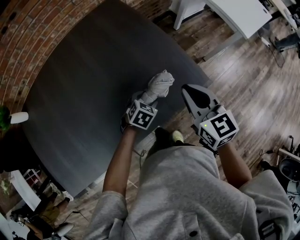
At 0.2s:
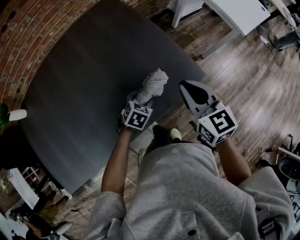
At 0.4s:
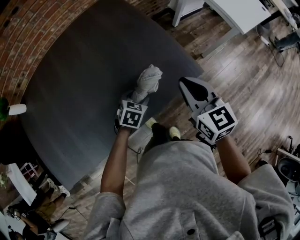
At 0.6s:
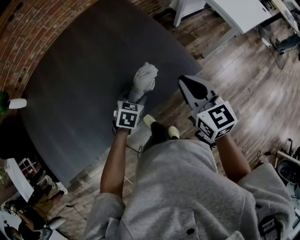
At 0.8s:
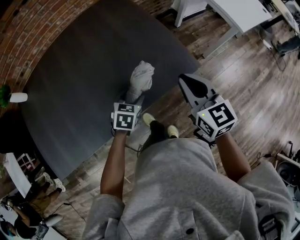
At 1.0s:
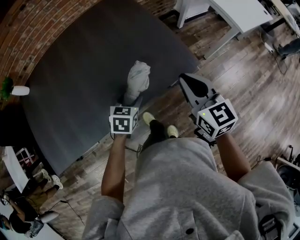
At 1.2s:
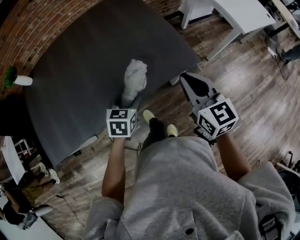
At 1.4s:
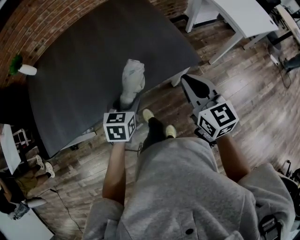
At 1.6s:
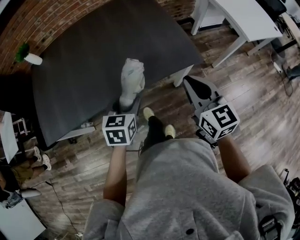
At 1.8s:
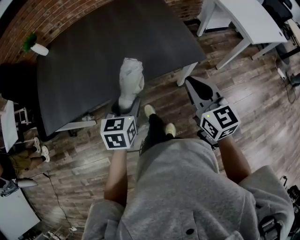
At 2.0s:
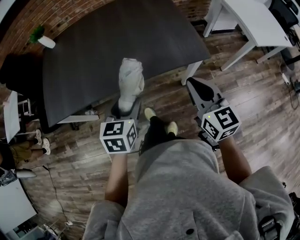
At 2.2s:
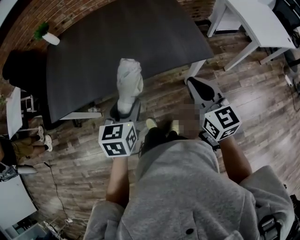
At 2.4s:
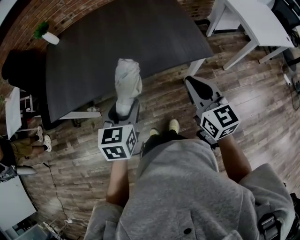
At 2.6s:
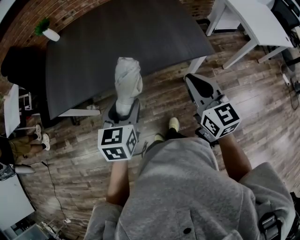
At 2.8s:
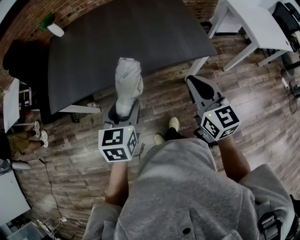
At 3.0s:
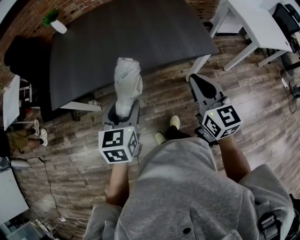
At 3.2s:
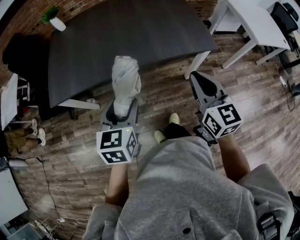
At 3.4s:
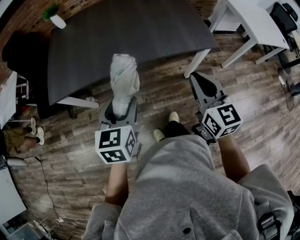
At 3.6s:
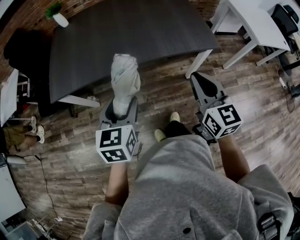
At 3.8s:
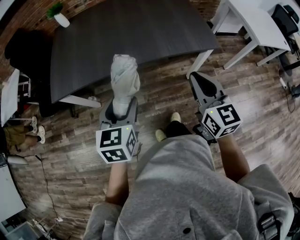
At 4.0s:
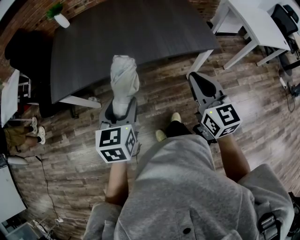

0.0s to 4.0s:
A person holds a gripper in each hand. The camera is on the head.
0.0s to 1.4s: The right gripper is displaced backward by some 15 cm. The left gripper heads backward and upward, covering approximately 25 cm, and changes its angle by approximately 40 degrees.
1.4s to 2.6s: The right gripper moves backward and to the left, some 10 cm, while the left gripper travels backward, upward and to the left by roughly 20 cm.
2.6s to 4.0s: Both grippers travel together to the left and backward, some 15 cm.

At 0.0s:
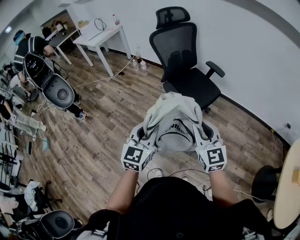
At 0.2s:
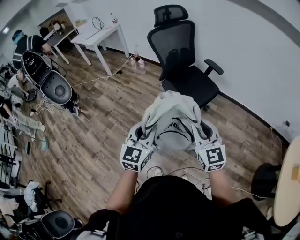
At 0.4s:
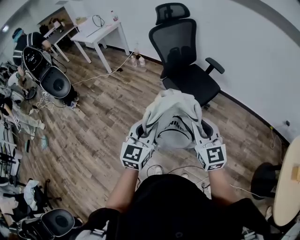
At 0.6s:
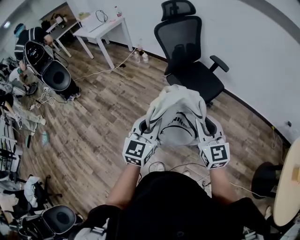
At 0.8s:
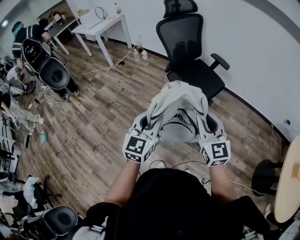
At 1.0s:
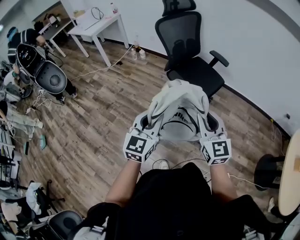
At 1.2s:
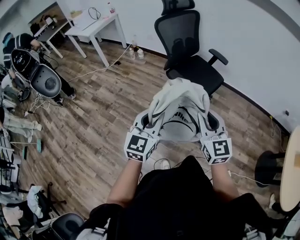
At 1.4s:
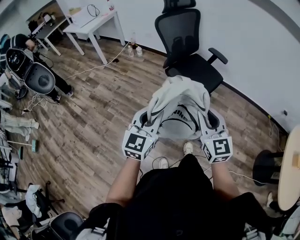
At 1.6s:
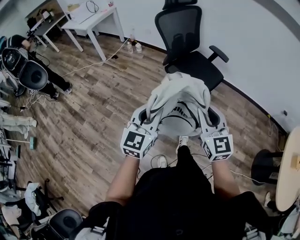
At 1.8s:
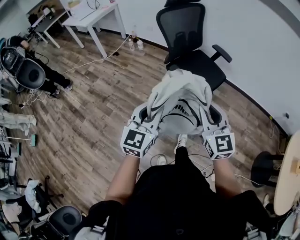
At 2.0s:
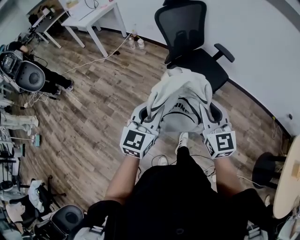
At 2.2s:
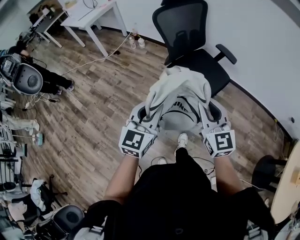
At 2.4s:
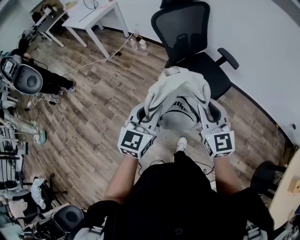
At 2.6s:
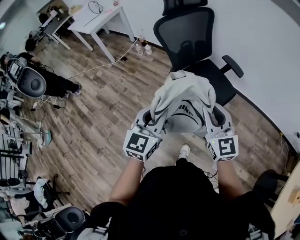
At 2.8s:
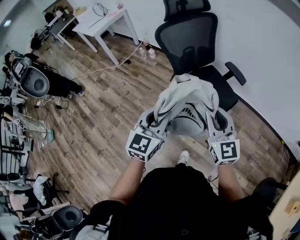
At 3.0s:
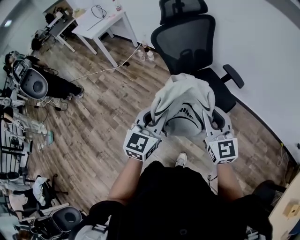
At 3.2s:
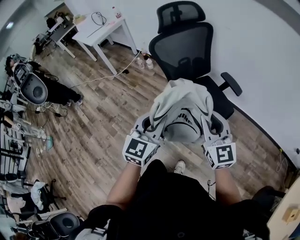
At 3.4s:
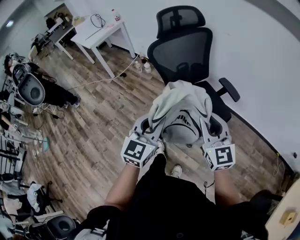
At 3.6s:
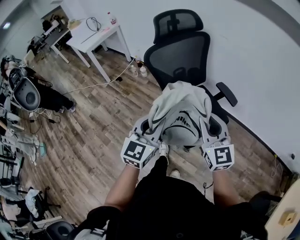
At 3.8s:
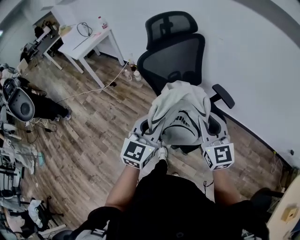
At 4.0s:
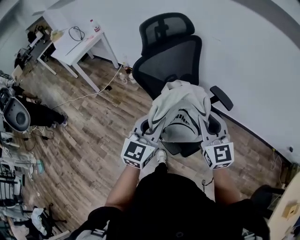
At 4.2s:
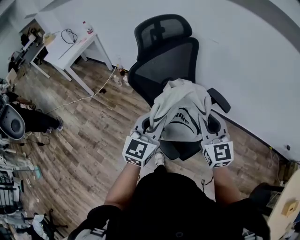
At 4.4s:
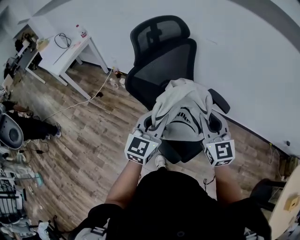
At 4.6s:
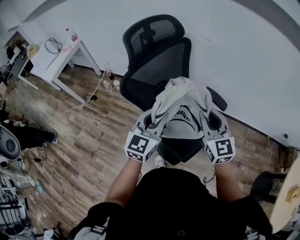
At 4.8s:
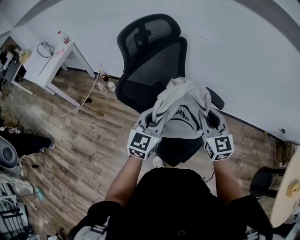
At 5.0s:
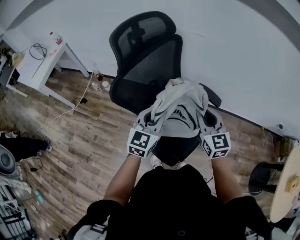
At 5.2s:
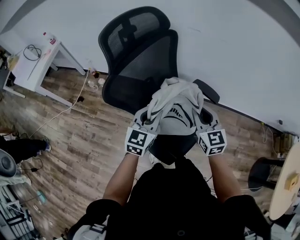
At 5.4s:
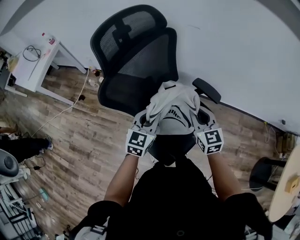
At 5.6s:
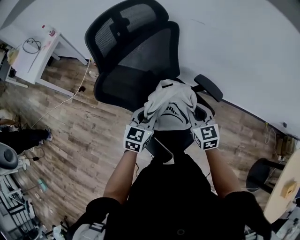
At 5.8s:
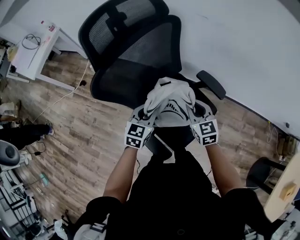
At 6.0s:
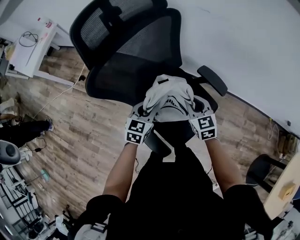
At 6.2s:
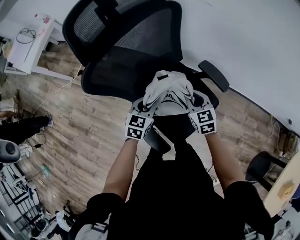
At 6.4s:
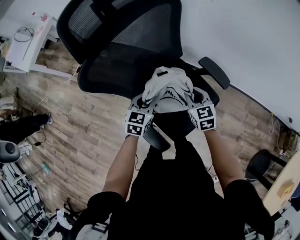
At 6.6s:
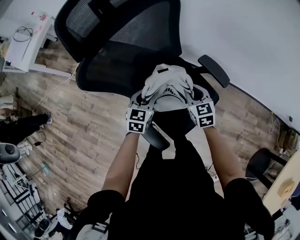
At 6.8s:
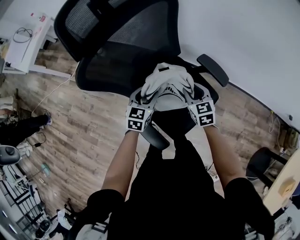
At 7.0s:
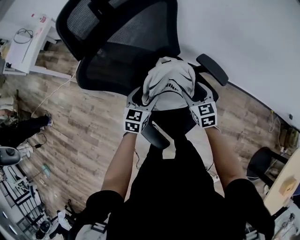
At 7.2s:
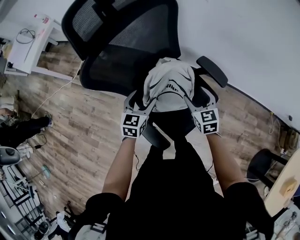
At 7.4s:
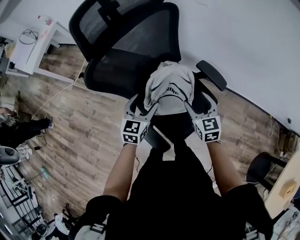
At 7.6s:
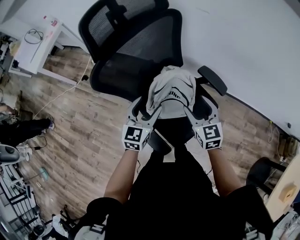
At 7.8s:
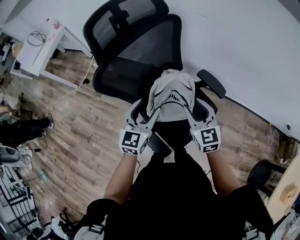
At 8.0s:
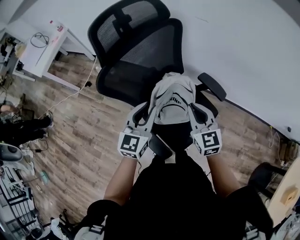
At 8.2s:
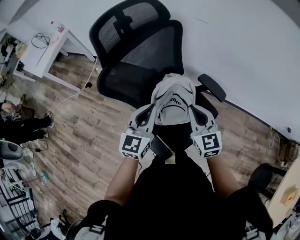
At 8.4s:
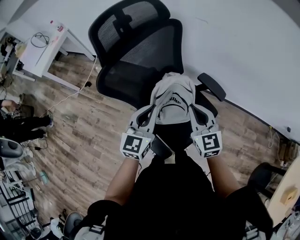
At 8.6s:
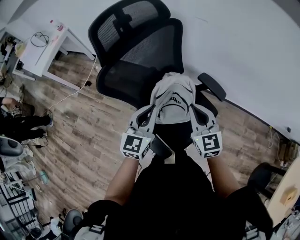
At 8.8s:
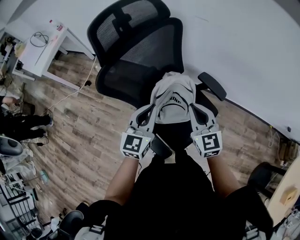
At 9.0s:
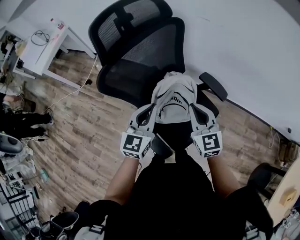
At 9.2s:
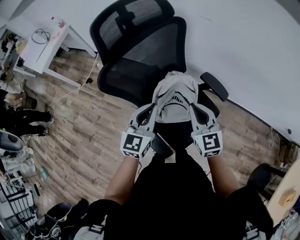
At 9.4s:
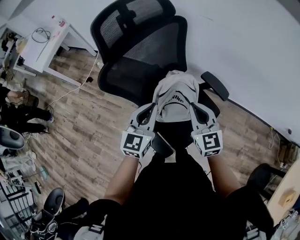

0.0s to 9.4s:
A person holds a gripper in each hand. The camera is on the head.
0.0s to 1.6s: The grippers both shift to the left by about 10 cm.
1.6s to 3.2s: The left gripper shifts some 30 cm forward and to the right. Meanwhile the right gripper goes about 30 cm forward.
3.2s to 4.8s: The two grippers go approximately 30 cm forward. The right gripper rotates roughly 20 degrees. The left gripper rotates about 20 degrees.
4.8s to 6.2s: The right gripper heads downward and forward, covering some 25 cm, and turns by about 30 degrees. The left gripper goes some 20 cm downward, and turns by some 30 degrees.
6.2s to 7.8s: The left gripper travels upward by roughly 15 cm, and opens its fingers. The right gripper goes approximately 15 cm upward and backward, and opens up.
7.8s to 9.4s: The right gripper closes its fingers; the left gripper closes.

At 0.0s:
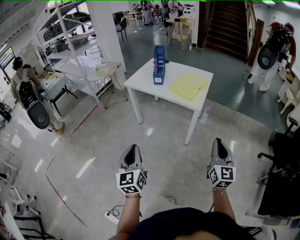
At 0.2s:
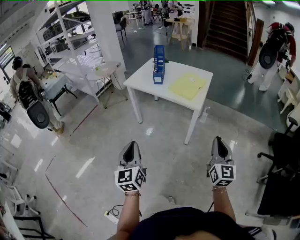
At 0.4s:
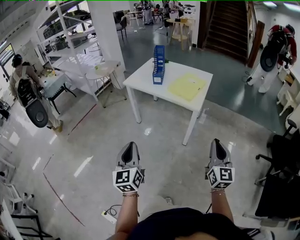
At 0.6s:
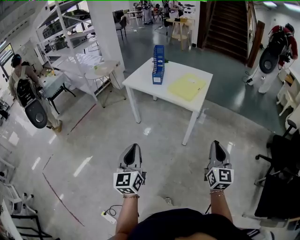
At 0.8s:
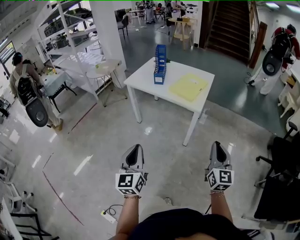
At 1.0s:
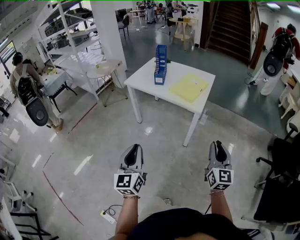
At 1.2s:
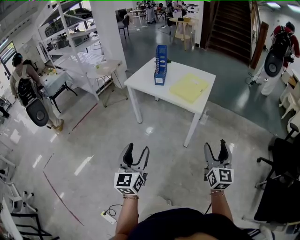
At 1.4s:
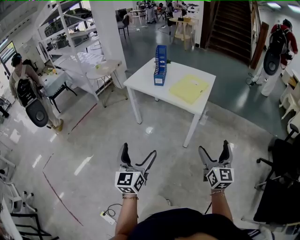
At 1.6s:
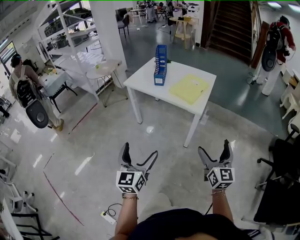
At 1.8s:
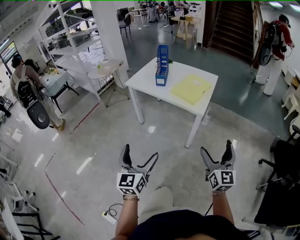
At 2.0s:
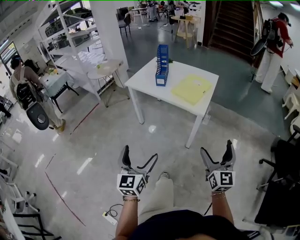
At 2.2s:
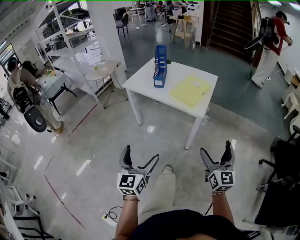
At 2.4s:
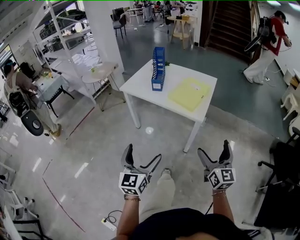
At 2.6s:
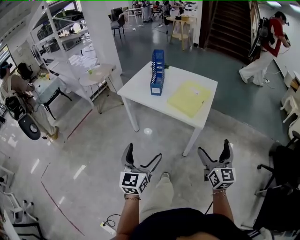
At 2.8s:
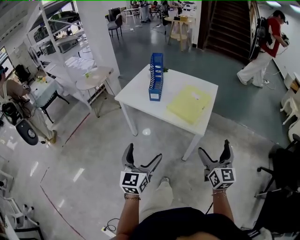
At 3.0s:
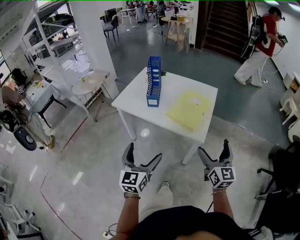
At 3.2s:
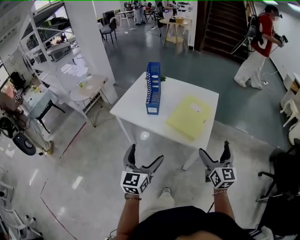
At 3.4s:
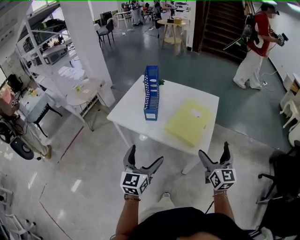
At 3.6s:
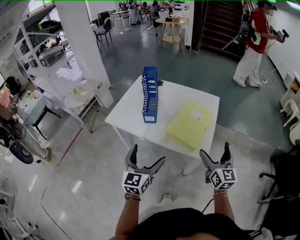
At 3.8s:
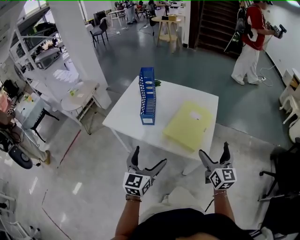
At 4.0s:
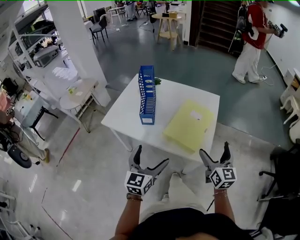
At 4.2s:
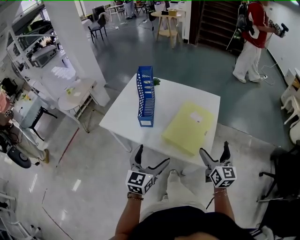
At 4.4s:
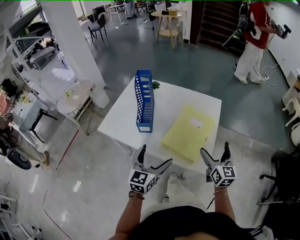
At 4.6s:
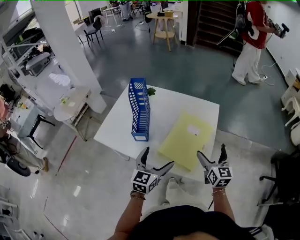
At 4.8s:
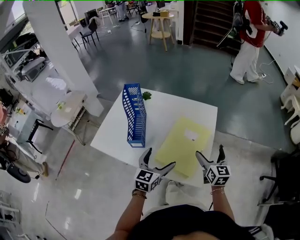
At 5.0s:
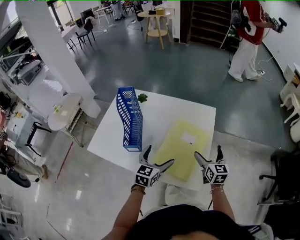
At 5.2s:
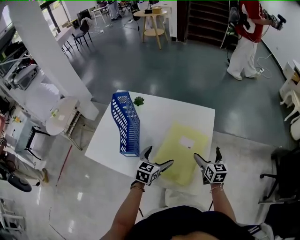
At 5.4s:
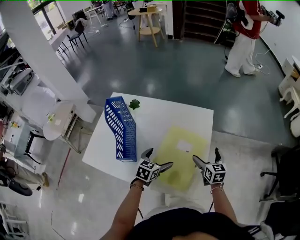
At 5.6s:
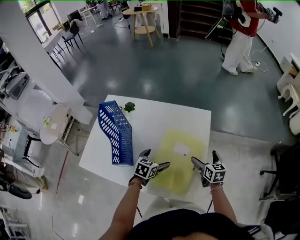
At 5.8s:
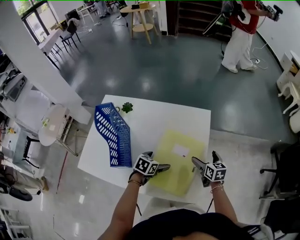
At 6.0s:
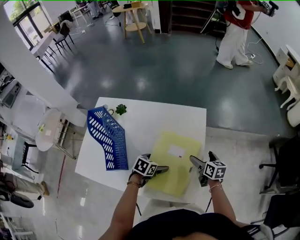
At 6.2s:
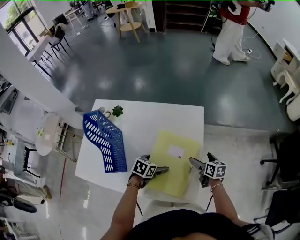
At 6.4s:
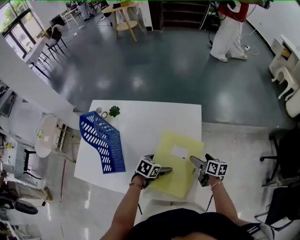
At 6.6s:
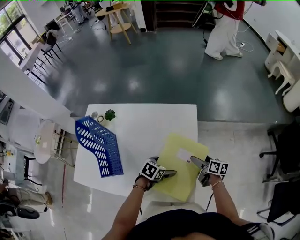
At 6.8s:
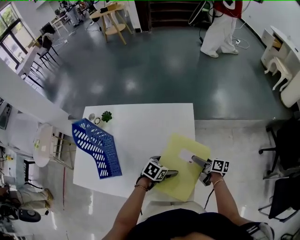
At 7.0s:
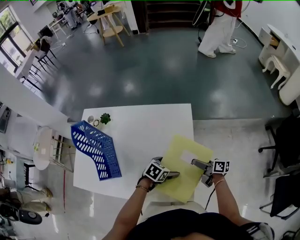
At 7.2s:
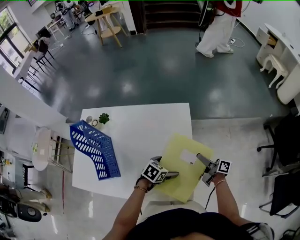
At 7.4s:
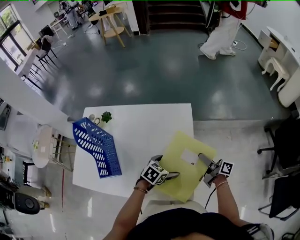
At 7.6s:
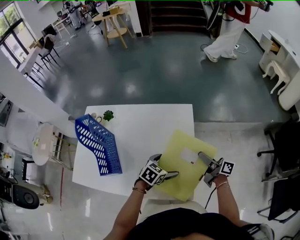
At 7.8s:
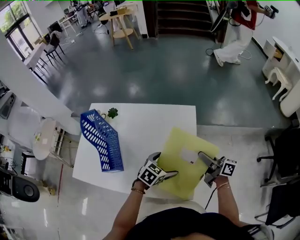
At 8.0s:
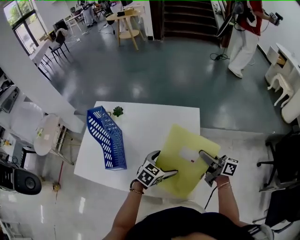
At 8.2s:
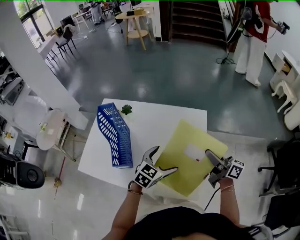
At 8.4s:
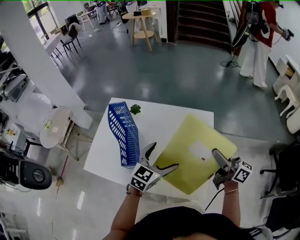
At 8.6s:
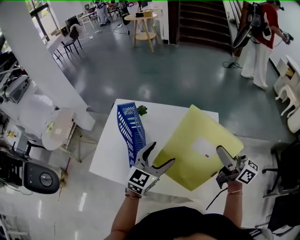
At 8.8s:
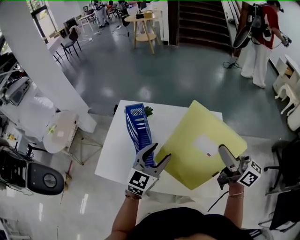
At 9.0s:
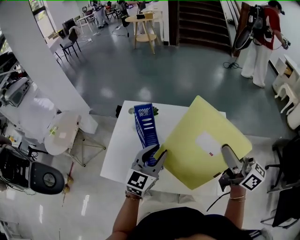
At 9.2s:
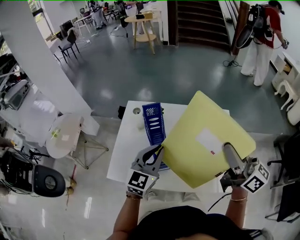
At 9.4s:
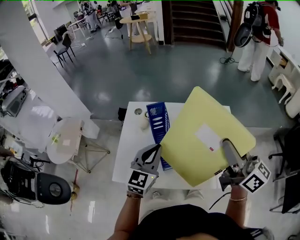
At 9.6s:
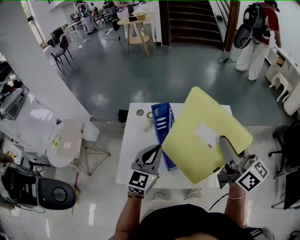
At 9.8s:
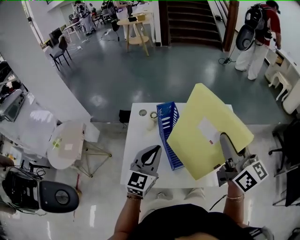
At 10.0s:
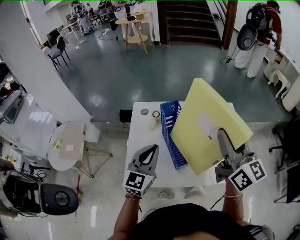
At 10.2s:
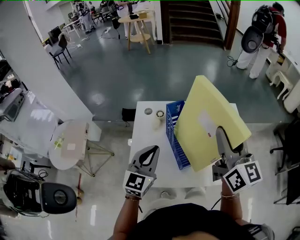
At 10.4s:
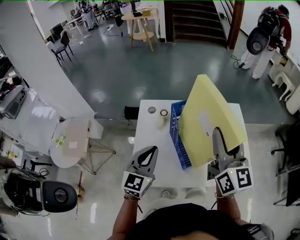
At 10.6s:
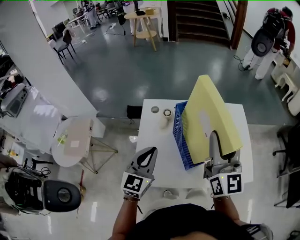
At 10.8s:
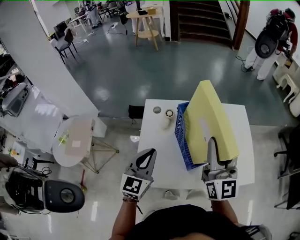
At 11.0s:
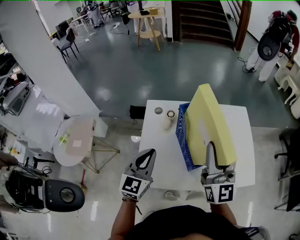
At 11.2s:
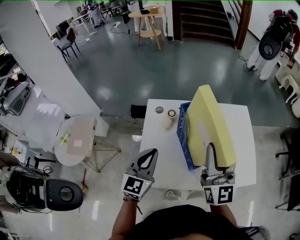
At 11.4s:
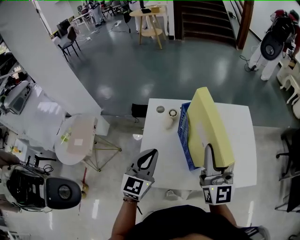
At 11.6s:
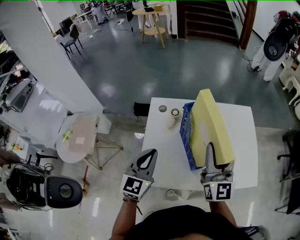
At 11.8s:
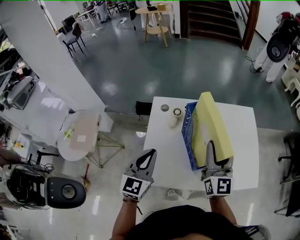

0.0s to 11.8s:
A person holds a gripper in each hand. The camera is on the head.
0.0s to 1.4s: The right gripper ends up some 5 cm from where it was, and opens up, while the left gripper changes place by approximately 5 cm, and opens its fingers.
1.4s to 3.0s: The grippers both shift forward by approximately 30 cm.
3.0s to 4.4s: Both grippers move forward, roughly 30 cm.
4.4s to 6.0s: Both grippers travel together forward and downward, about 35 cm. The right gripper turns by some 40 degrees, while the left gripper points its fingers some 40 degrees further downward.
6.0s to 7.4s: The right gripper heads to the right, covering about 5 cm, points its fingers approximately 30 degrees further upward, and closes; the left gripper heads to the right, covering about 10 cm.
7.4s to 8.8s: The right gripper goes approximately 35 cm upward and to the left, and rotates some 40 degrees. Meanwhile the left gripper travels to the left and upward by some 35 cm, angles its fingers upward, by about 40 degrees, and closes up.
8.8s to 10.4s: Both grippers move to the left, roughly 30 cm. The right gripper swivels about 50 degrees. Meanwhile the left gripper closes up.
10.4s to 11.8s: The left gripper goes some 5 cm to the left. The right gripper heads downward, covering roughly 10 cm.
